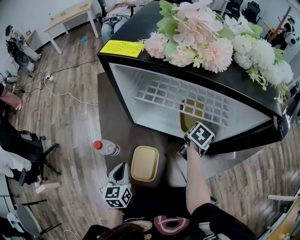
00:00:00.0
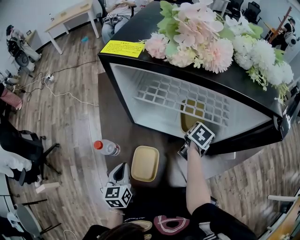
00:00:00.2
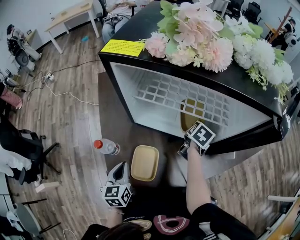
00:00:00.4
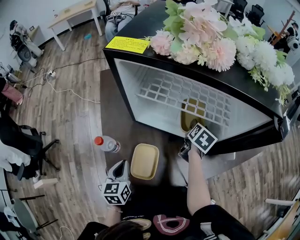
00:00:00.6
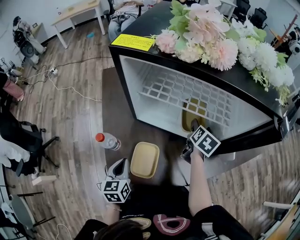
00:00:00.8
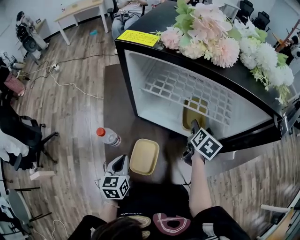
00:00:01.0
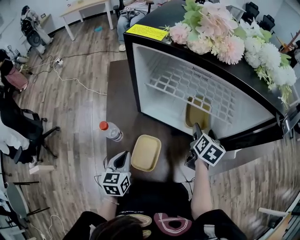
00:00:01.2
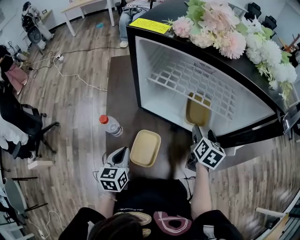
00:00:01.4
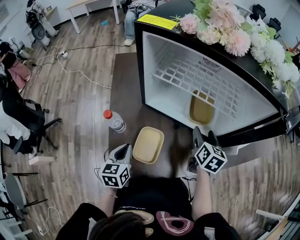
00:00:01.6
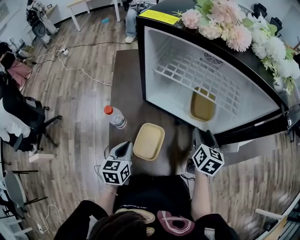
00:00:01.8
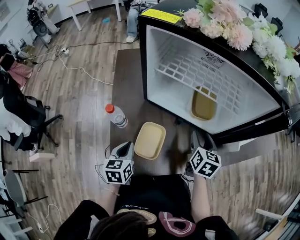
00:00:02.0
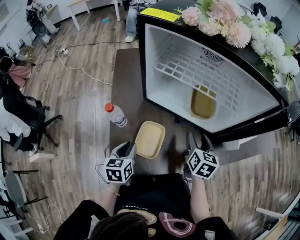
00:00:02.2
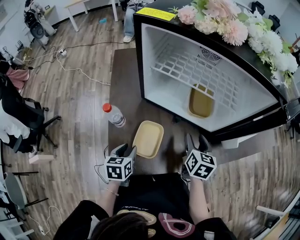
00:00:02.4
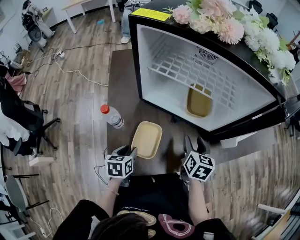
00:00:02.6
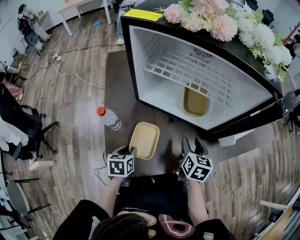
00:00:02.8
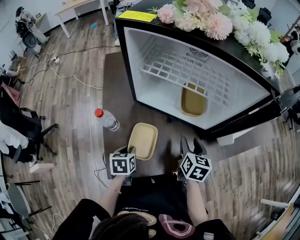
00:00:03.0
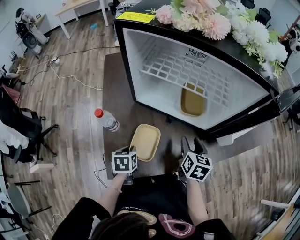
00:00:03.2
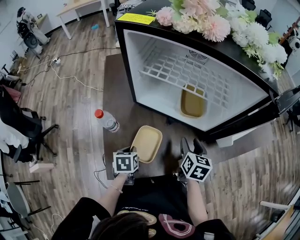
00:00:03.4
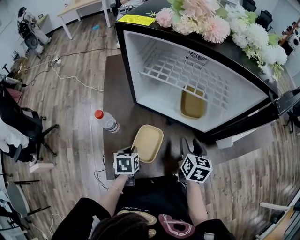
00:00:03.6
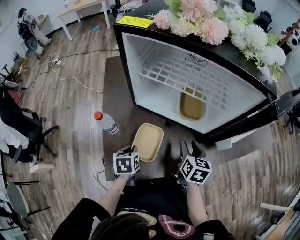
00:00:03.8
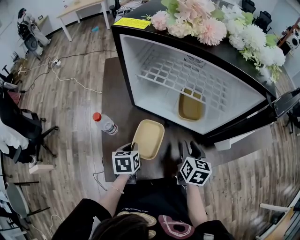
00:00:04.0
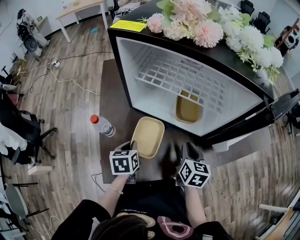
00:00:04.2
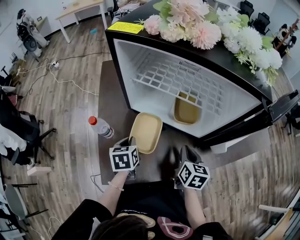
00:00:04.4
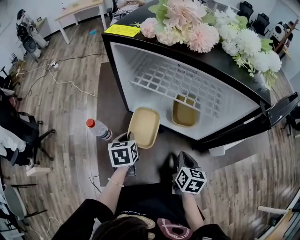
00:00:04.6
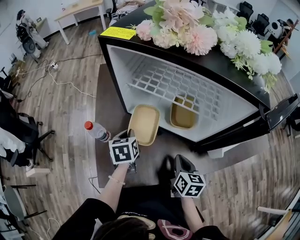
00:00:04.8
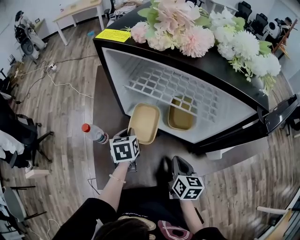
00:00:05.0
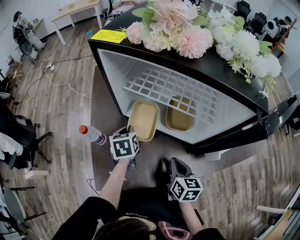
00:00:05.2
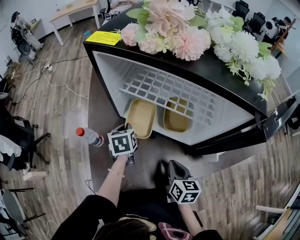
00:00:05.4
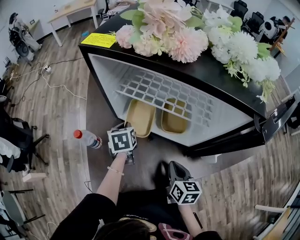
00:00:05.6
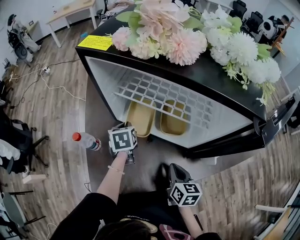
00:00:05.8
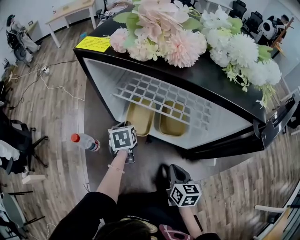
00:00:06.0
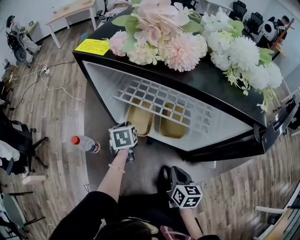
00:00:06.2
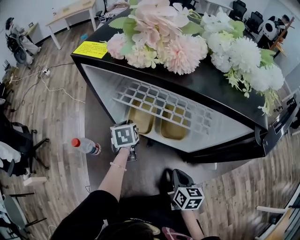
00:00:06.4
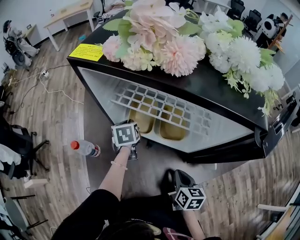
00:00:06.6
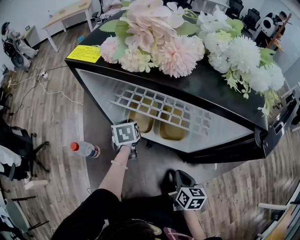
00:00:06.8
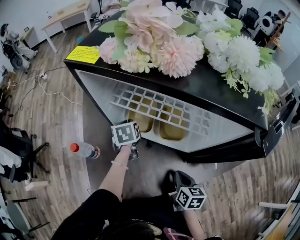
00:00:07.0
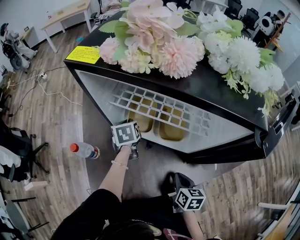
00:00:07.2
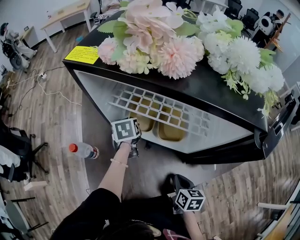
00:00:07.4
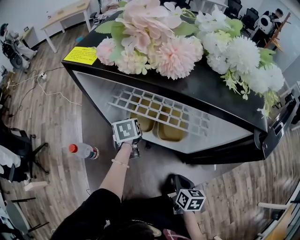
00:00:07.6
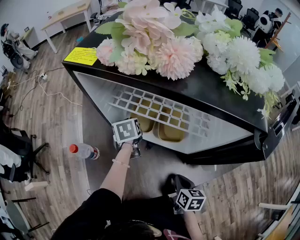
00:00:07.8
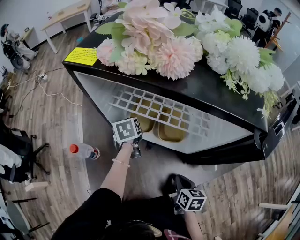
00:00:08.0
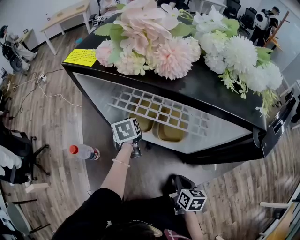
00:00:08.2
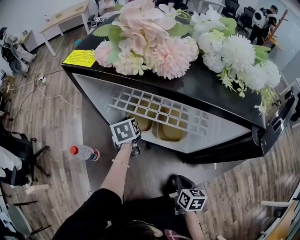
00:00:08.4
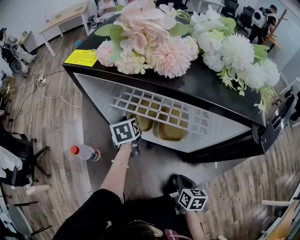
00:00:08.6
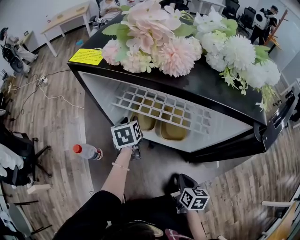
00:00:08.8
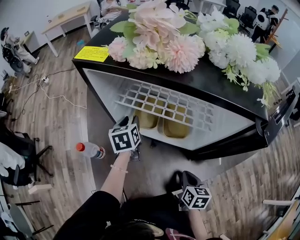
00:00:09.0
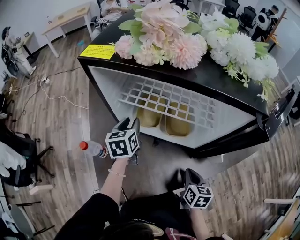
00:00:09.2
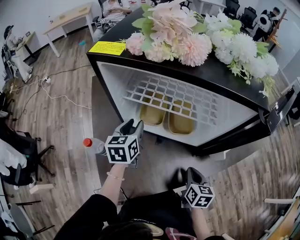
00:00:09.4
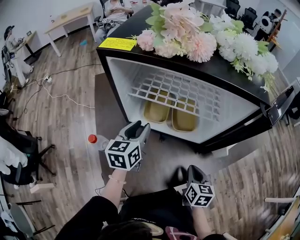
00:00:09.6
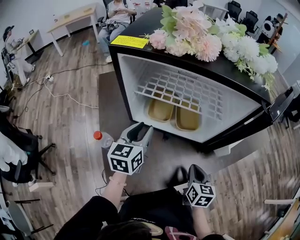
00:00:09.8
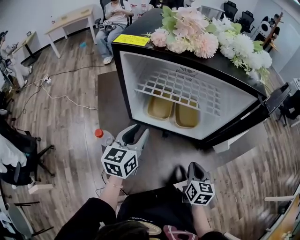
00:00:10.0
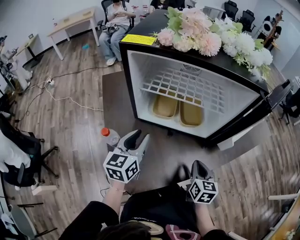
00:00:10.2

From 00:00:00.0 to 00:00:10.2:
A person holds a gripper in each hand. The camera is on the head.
From 00:00:00.0 to 00:00:01.4: The right gripper moves backward, about 5 cm, changes its angle by some 30 degrees, and opens up.
From 00:00:01.4 to 00:00:03.0: The left gripper travels downward by some 10 cm, rotates about 30 degrees, and opens its fingers. The right gripper shifts about 10 cm backward.
From 00:00:03.0 to 00:00:04.4: The right gripper closes its fingers. Meanwhile the left gripper is displaced forward and upward by about 10 cm.
From 00:00:04.4 to 00:00:05.8: The left gripper travels forward by about 15 cm.
From 00:00:05.8 to 00:00:07.2: The left gripper heads forward, covering roughly 5 cm.
From 00:00:07.2 to 00:00:08.8: The left gripper opens.
From 00:00:08.8 to 00:00:10.2: The right gripper is displaced upward by some 5 cm, and turns by about 20 degrees, while the left gripper shifts approximately 20 cm backward and upward, and changes its angle by about 40 degrees.

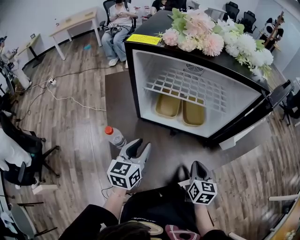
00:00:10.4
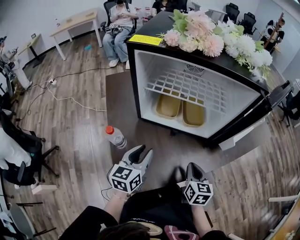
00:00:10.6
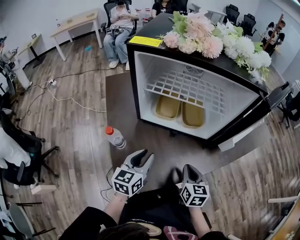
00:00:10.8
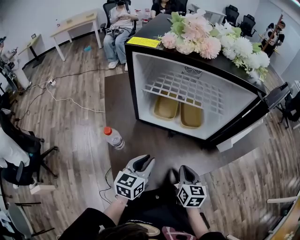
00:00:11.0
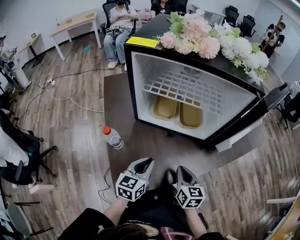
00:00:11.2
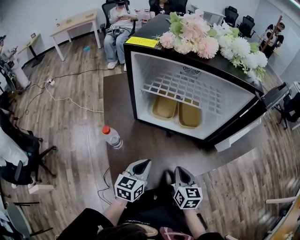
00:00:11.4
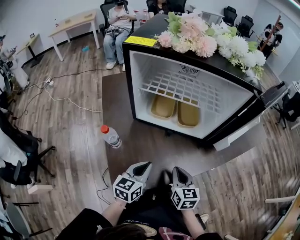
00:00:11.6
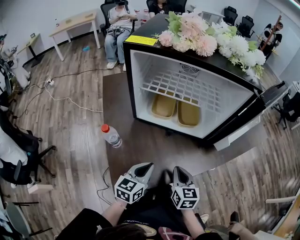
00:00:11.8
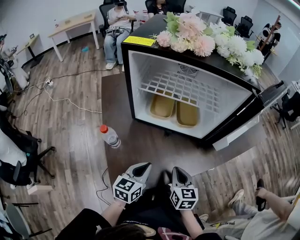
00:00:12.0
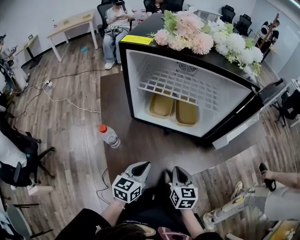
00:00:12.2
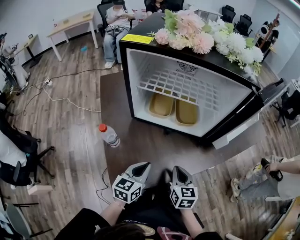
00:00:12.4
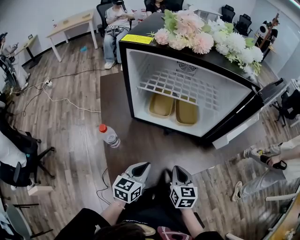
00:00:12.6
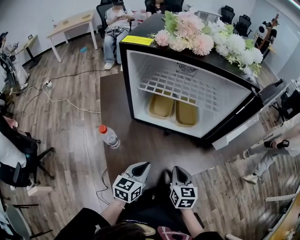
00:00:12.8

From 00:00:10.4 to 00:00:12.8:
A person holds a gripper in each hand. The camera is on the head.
From 00:00:10.4 to 00:00:11.6: The right gripper heads to the left, covering some 5 cm. The left gripper is displaced backward, downward and to the right by roughly 10 cm, and closes its fingers.
From 00:00:11.6 to 00:00:12.8: Both grippers stay about where they are.

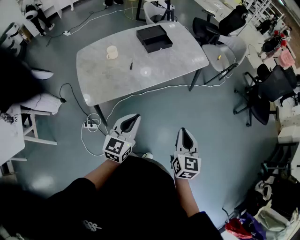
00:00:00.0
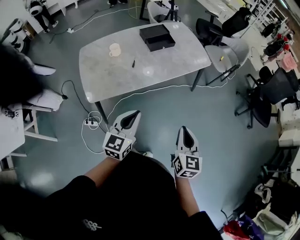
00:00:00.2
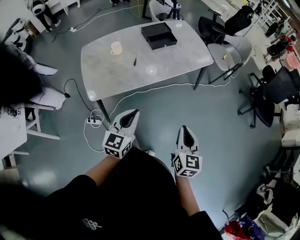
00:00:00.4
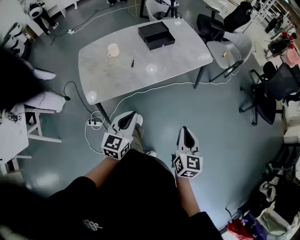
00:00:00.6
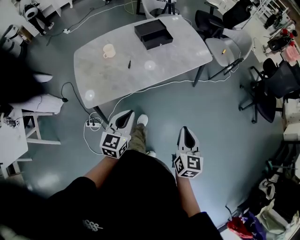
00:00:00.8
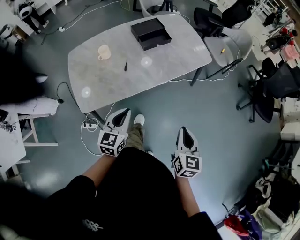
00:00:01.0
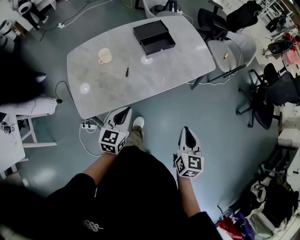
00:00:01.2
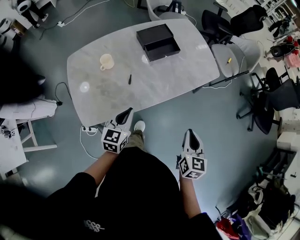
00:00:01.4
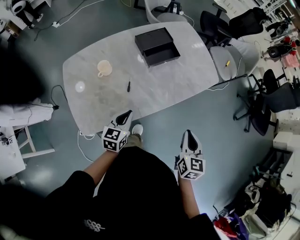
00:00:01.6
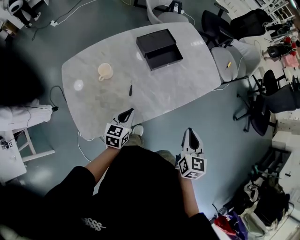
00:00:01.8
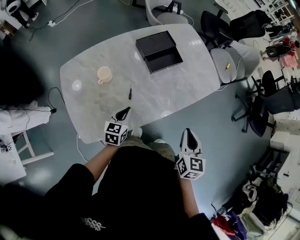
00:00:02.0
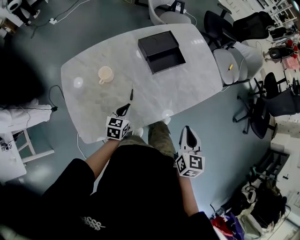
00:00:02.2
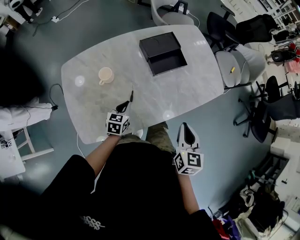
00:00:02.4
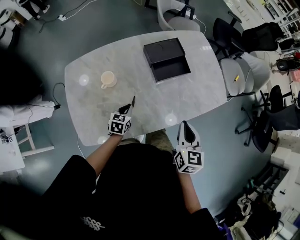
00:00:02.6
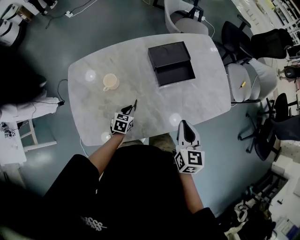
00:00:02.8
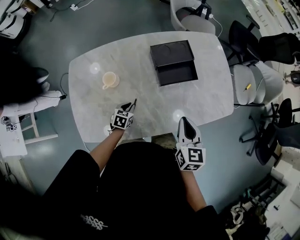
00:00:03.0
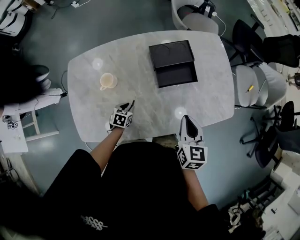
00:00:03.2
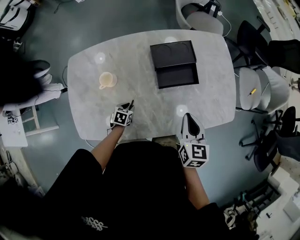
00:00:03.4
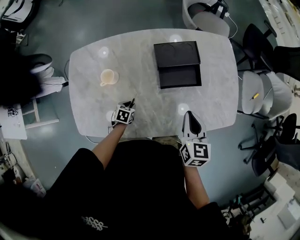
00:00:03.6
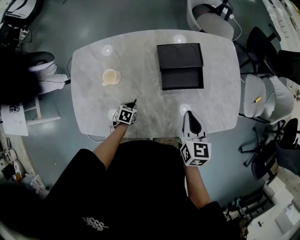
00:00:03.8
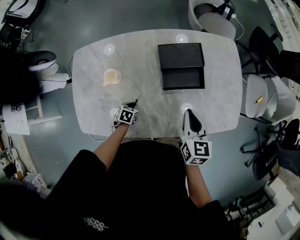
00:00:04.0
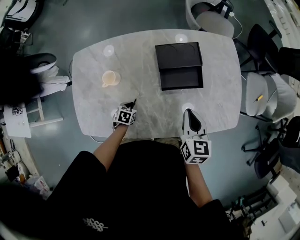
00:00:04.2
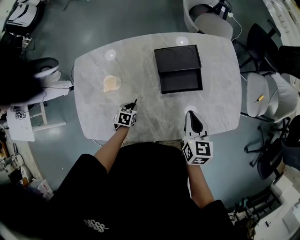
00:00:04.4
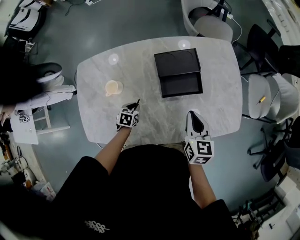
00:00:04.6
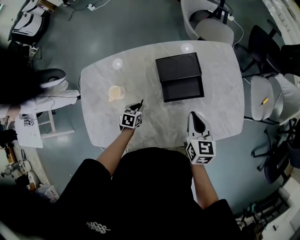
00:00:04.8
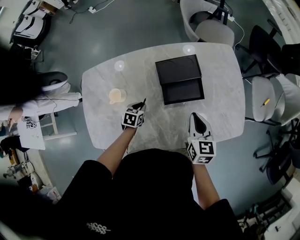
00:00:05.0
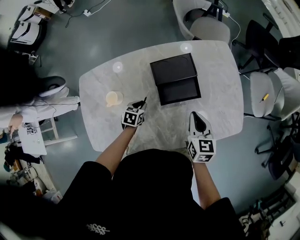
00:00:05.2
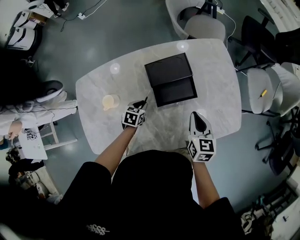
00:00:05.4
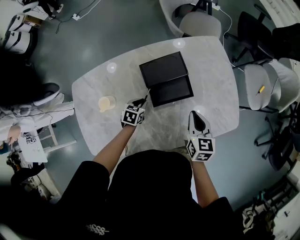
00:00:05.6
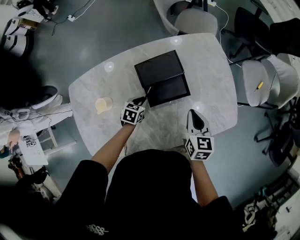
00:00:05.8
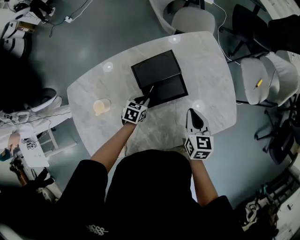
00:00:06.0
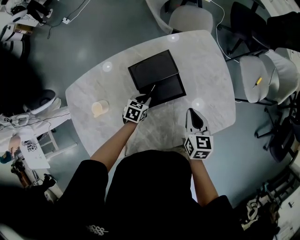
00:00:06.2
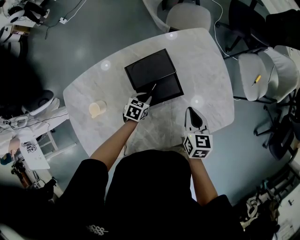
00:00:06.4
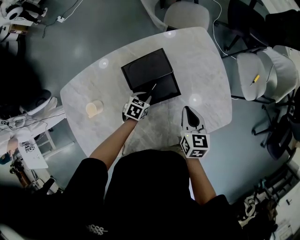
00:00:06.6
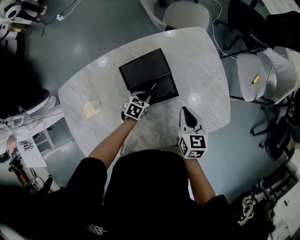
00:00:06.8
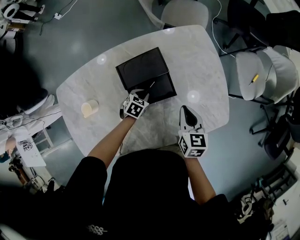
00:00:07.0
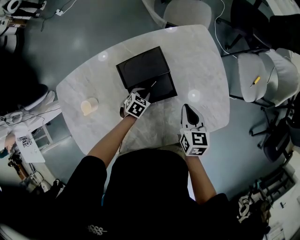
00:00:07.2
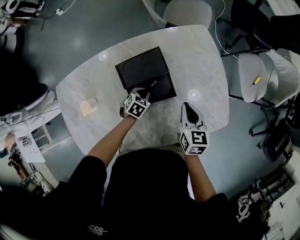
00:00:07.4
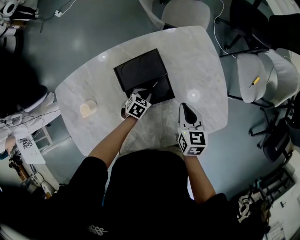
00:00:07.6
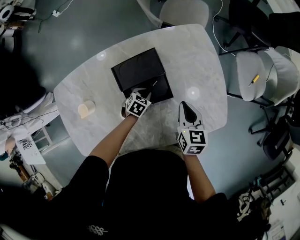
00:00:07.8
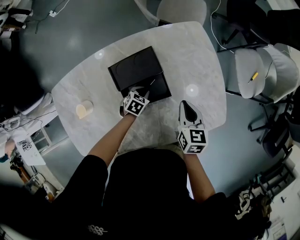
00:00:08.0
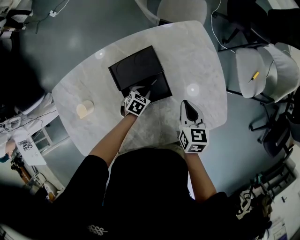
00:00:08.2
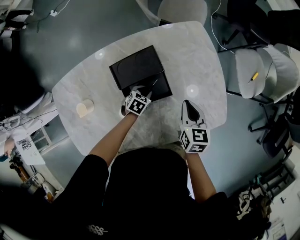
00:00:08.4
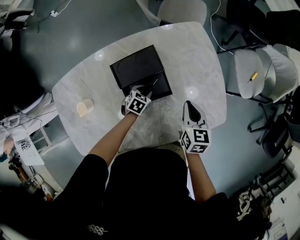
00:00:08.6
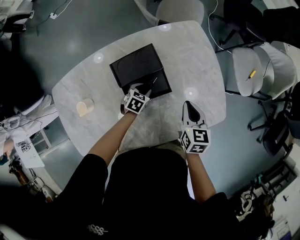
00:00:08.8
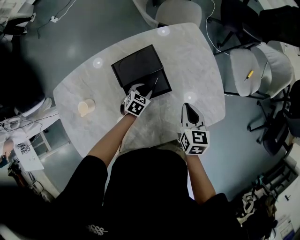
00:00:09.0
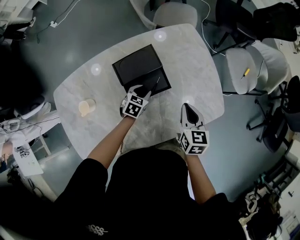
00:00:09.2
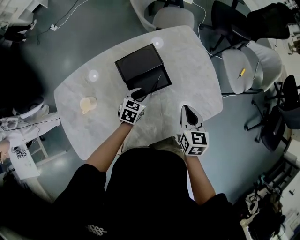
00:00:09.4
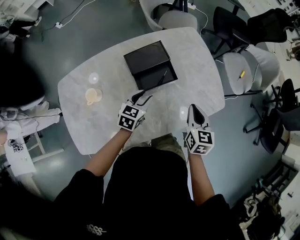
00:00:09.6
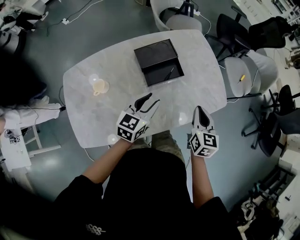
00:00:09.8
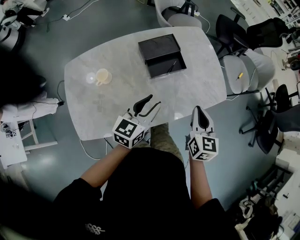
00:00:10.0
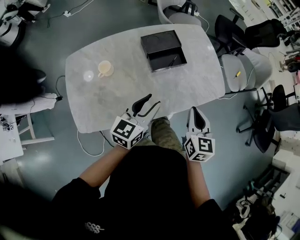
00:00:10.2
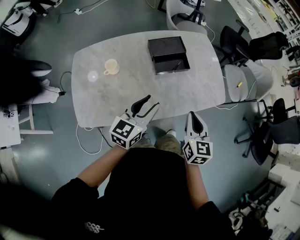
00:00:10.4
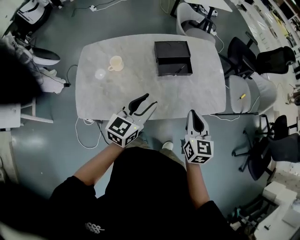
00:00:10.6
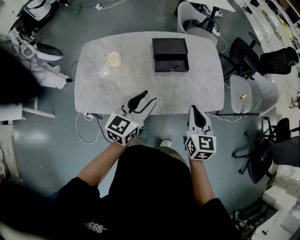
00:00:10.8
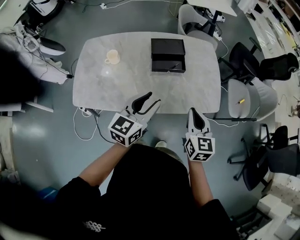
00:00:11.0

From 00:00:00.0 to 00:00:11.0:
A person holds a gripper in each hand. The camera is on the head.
From 00:00:00.0 to 00:00:01.6: The right gripper shifts roughly 25 cm forward; the left gripper moves forward, downward and to the left, about 35 cm.
From 00:00:01.6 to 00:00:03.2: The right gripper shifts some 30 cm forward, and swivels some 20 degrees, while the left gripper shifts some 30 cm downward and forward, tilts its fingers some 30 degrees downward, and opens its fingers.
From 00:00:03.2 to 00:00:04.8: Both grippers move forward, some 10 cm.
From 00:00:04.8 to 00:00:06.2: The left gripper shifts about 20 cm to the right and forward, and changes its angle by some 20 degrees, while the right gripper goes some 10 cm to the right and forward.
From 00:00:06.2 to 00:00:07.8: The right gripper moves forward, some 5 cm, while the left gripper moves downward and to the right, roughly 10 cm.
From 00:00:07.8 to 00:00:09.4: The left gripper moves upward and backward, roughly 15 cm, and opens its fingers. The right gripper moves backward and upward, roughly 10 cm.
From 00:00:09.4 to 00:00:11.0: The right gripper travels backward and upward by about 25 cm, and rotates roughly 30 degrees. Meanwhile the left gripper moves backward and upward, roughly 40 cm, and tips its fingers upward by roughly 40 degrees.
